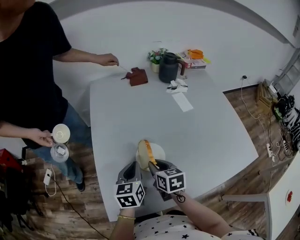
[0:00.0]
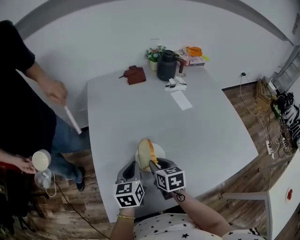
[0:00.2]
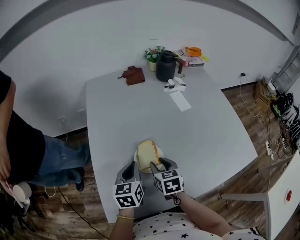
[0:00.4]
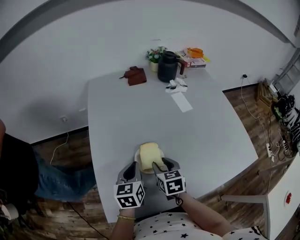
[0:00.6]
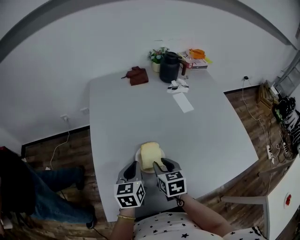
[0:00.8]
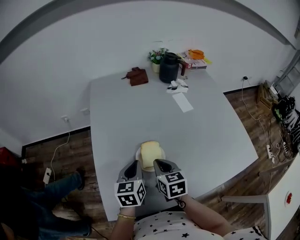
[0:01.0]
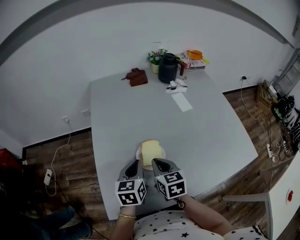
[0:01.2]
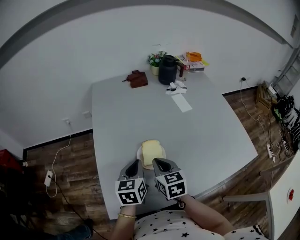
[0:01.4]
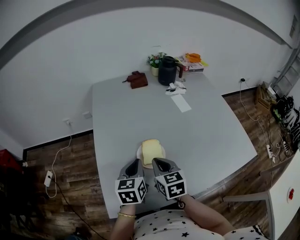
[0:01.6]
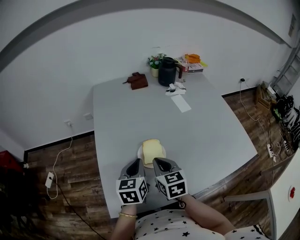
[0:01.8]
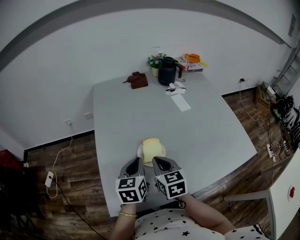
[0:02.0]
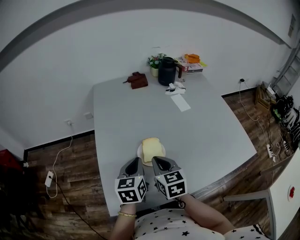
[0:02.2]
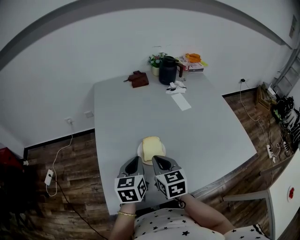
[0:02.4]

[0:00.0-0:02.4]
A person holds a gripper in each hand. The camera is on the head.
0.0 to 1.2 s: The right gripper opens, then closes once more.
1.2 to 2.4 s: The grippers move only a little.

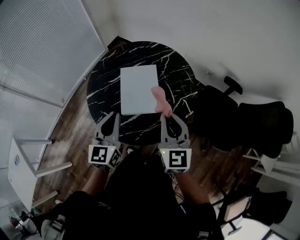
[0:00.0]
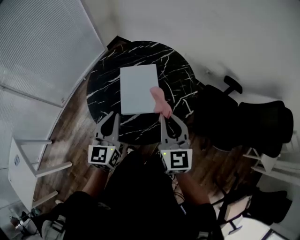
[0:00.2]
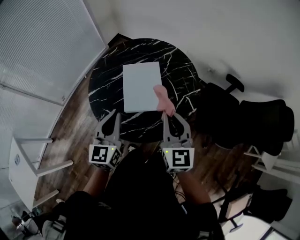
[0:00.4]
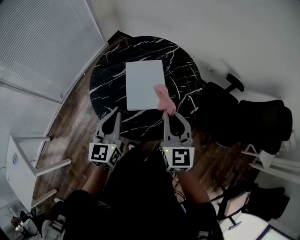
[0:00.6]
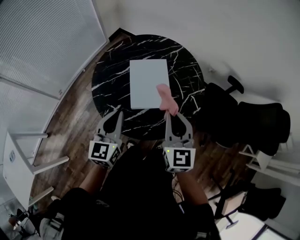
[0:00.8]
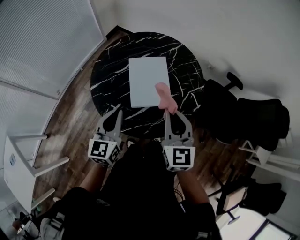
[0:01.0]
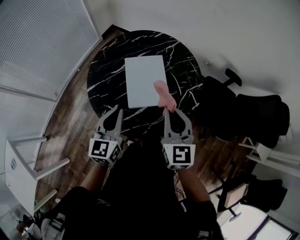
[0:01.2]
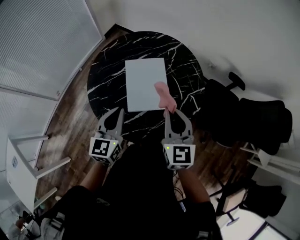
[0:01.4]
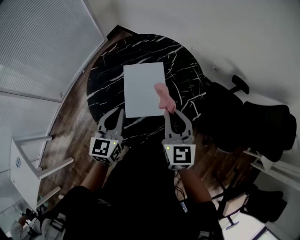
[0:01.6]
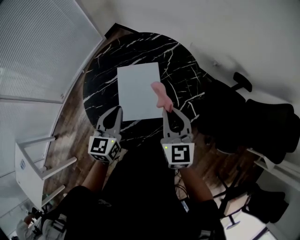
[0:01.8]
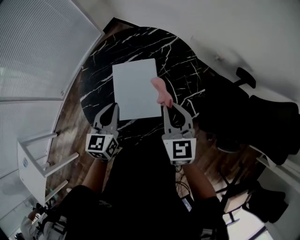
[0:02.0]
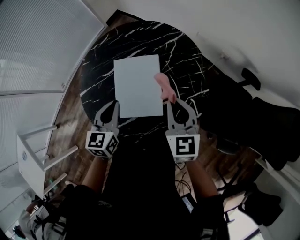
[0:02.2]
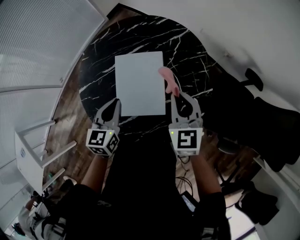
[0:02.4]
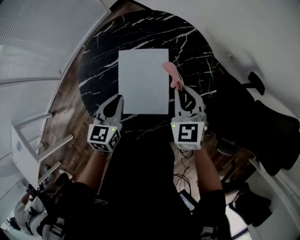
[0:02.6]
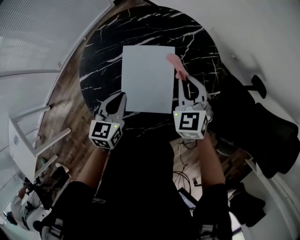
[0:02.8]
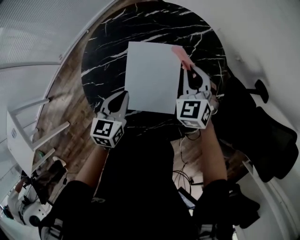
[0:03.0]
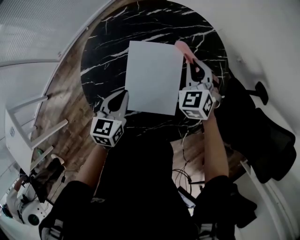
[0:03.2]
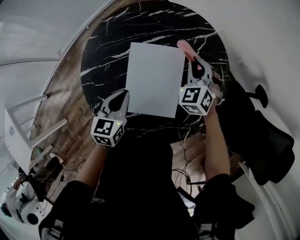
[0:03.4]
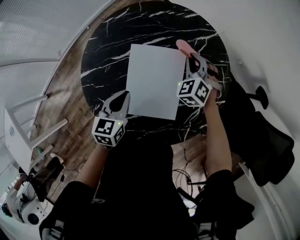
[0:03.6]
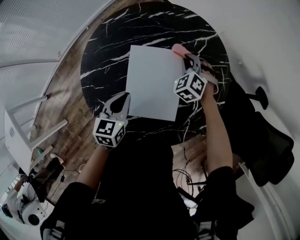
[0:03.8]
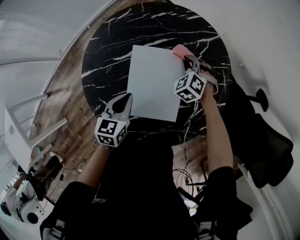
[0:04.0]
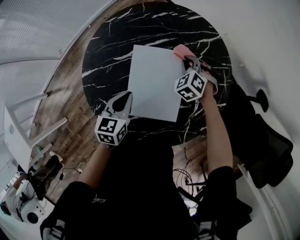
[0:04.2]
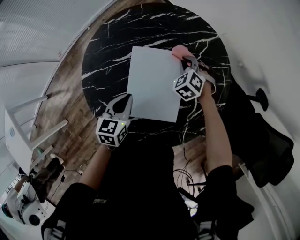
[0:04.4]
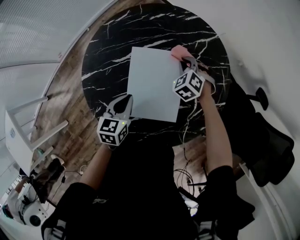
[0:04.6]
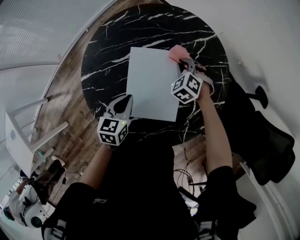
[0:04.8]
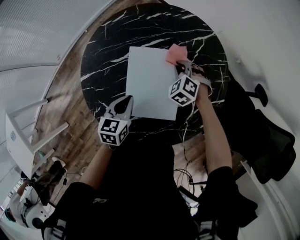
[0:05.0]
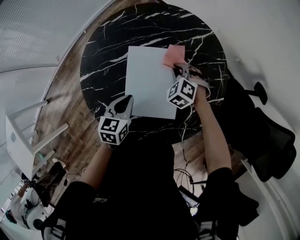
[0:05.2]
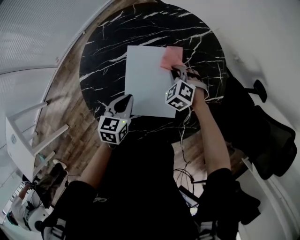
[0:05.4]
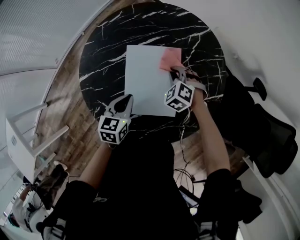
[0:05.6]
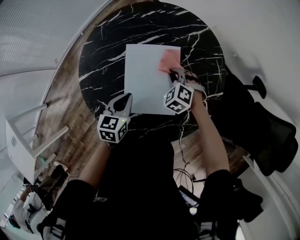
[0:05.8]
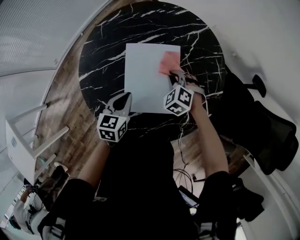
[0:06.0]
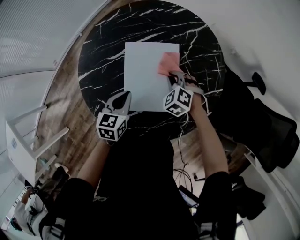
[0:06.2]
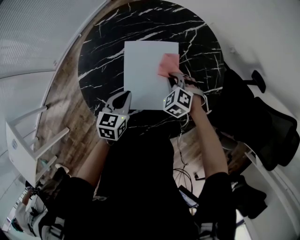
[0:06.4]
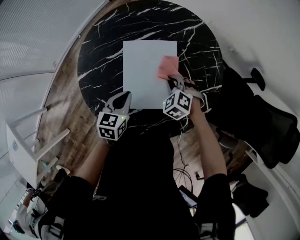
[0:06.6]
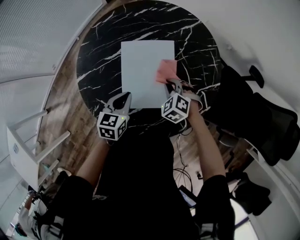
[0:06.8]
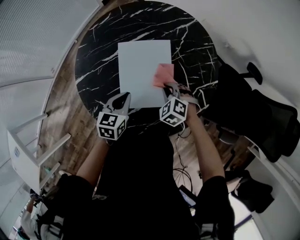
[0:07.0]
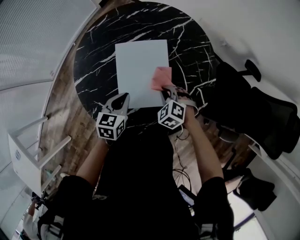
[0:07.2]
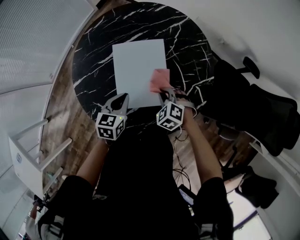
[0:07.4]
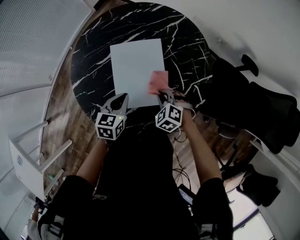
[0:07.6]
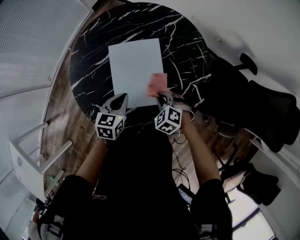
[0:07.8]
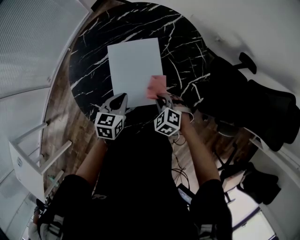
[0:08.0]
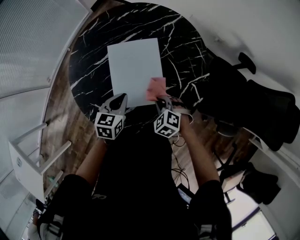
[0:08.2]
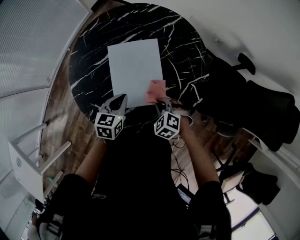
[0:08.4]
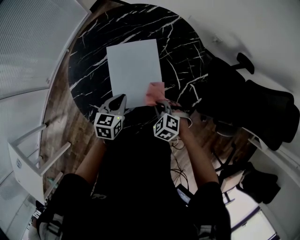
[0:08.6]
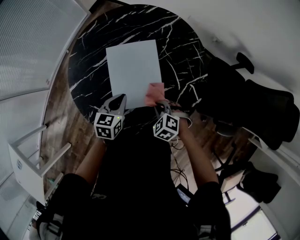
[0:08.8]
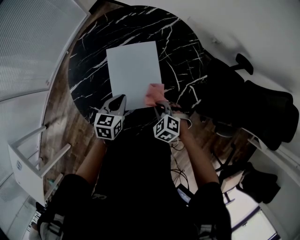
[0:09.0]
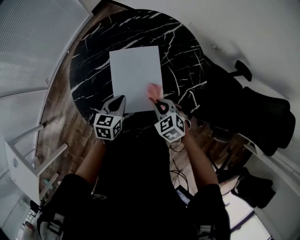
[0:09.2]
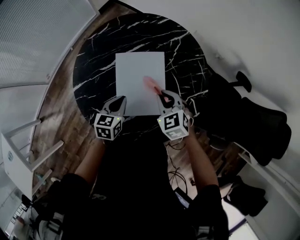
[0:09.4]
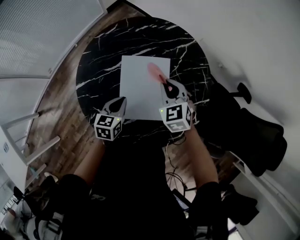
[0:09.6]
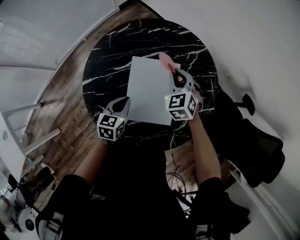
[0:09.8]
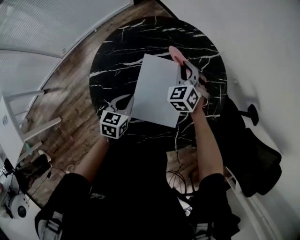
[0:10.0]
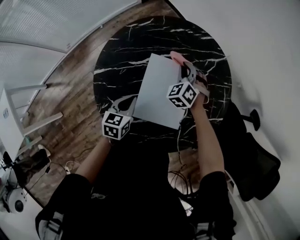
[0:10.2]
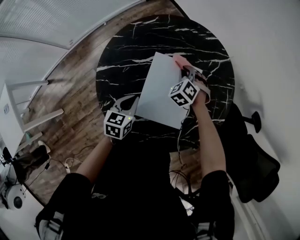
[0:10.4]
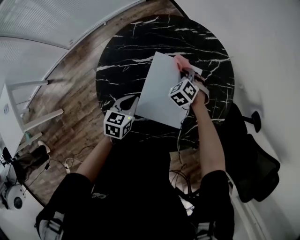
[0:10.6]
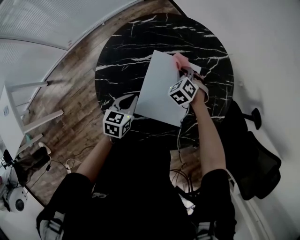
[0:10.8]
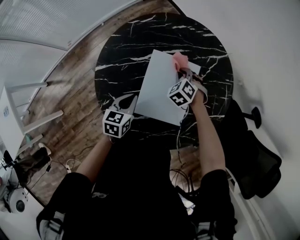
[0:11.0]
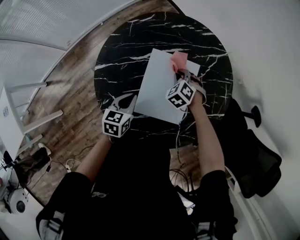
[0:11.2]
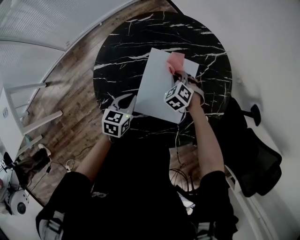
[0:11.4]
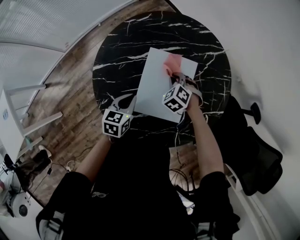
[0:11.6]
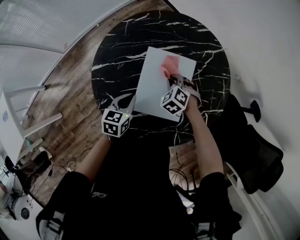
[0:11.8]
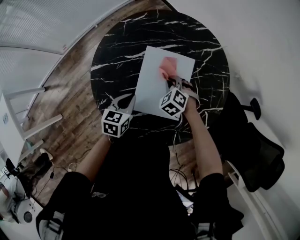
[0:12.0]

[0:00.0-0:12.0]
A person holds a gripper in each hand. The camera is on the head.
0.0 to 1.6 s: The left gripper heads forward and downward, covering some 10 cm, while the right gripper travels forward by about 10 cm.
1.6 to 3.0 s: The left gripper heads downward and forward, covering approximately 15 cm, while the right gripper goes roughly 25 cm forward and downward, and turns by roughly 40 degrees.
3.0 to 4.4 s: The left gripper moves approximately 5 cm. The right gripper travels downward and forward by about 15 cm, and turns by about 30 degrees.
4.4 to 6.0 s: The right gripper moves backward, some 10 cm.
6.0 to 7.6 s: The right gripper shifts approximately 15 cm backward.
7.6 to 9.0 s: The grippers move only a little.
9.0 to 10.4 s: The right gripper heads forward, covering some 25 cm, and swivels about 20 degrees. The left gripper travels to the left by about 10 cm.
10.4 to 12.0 s: The right gripper is displaced backward by roughly 10 cm.

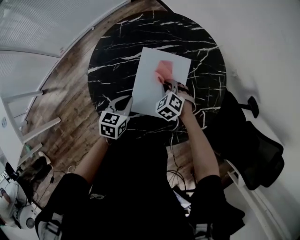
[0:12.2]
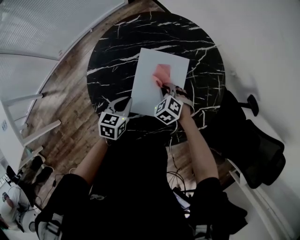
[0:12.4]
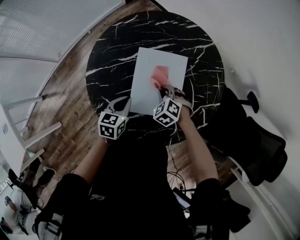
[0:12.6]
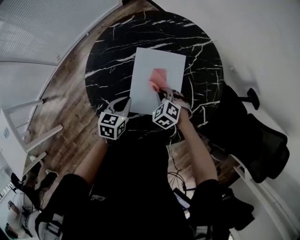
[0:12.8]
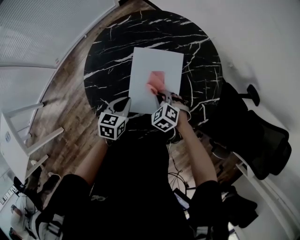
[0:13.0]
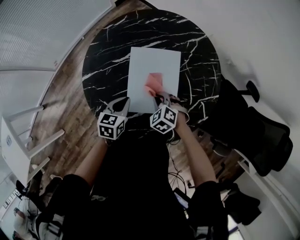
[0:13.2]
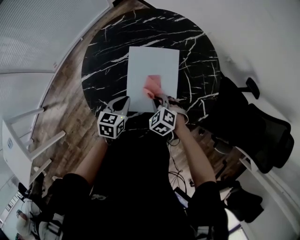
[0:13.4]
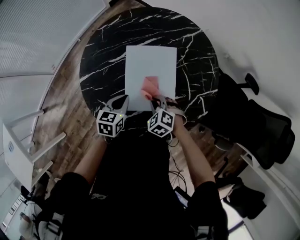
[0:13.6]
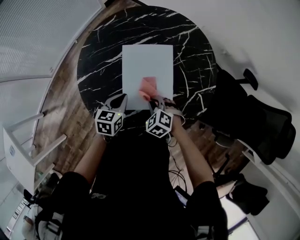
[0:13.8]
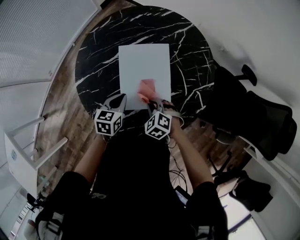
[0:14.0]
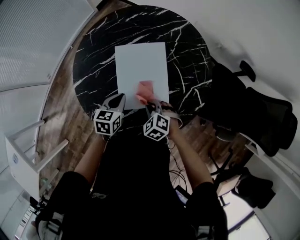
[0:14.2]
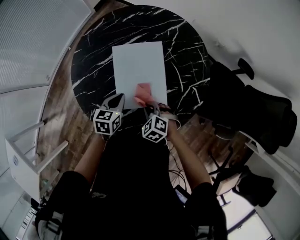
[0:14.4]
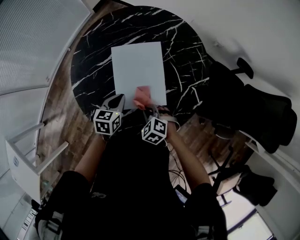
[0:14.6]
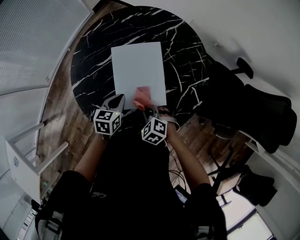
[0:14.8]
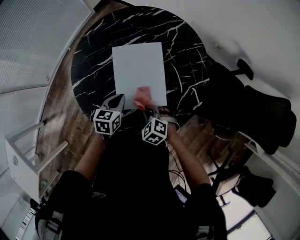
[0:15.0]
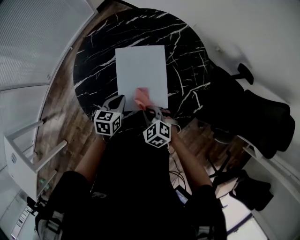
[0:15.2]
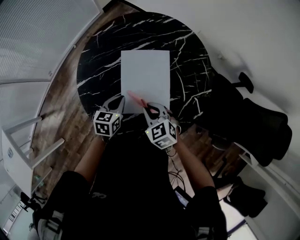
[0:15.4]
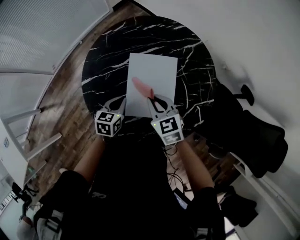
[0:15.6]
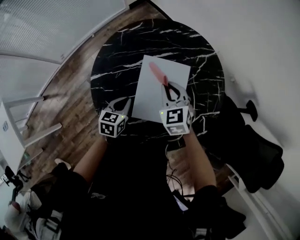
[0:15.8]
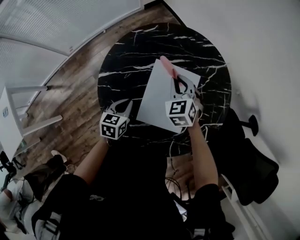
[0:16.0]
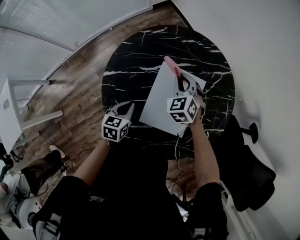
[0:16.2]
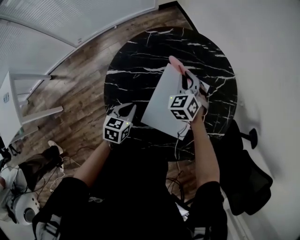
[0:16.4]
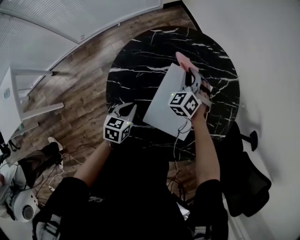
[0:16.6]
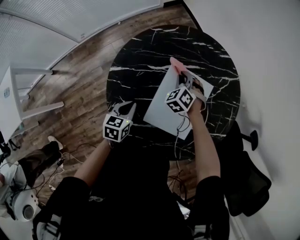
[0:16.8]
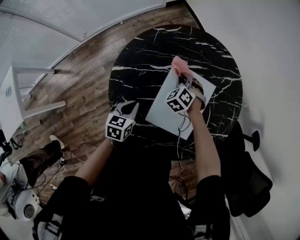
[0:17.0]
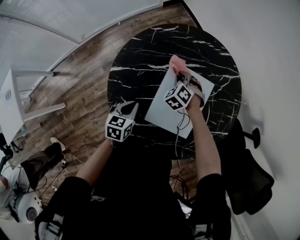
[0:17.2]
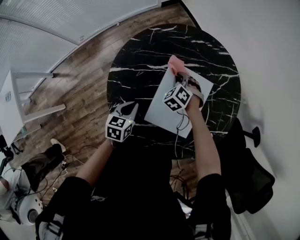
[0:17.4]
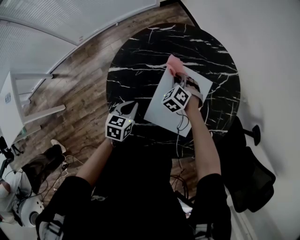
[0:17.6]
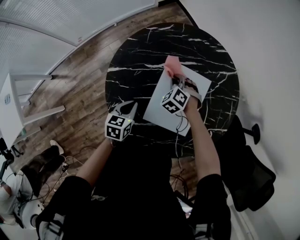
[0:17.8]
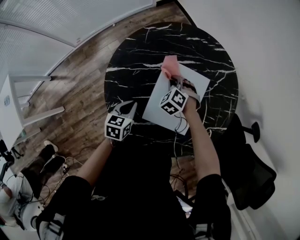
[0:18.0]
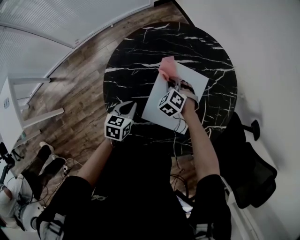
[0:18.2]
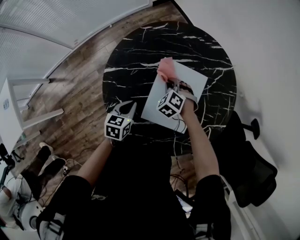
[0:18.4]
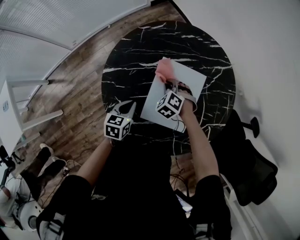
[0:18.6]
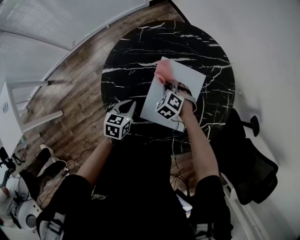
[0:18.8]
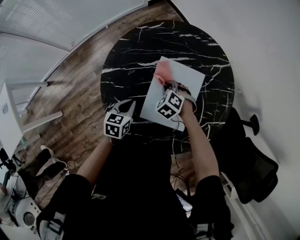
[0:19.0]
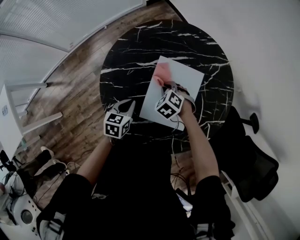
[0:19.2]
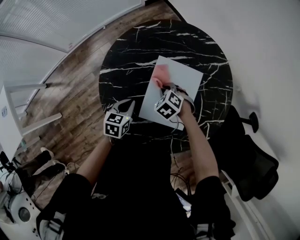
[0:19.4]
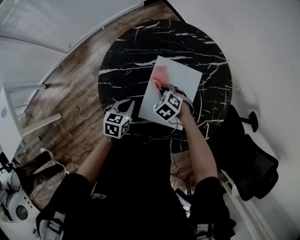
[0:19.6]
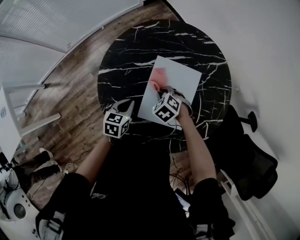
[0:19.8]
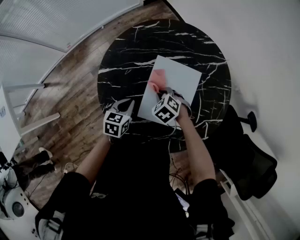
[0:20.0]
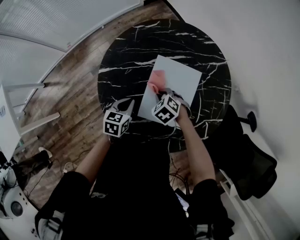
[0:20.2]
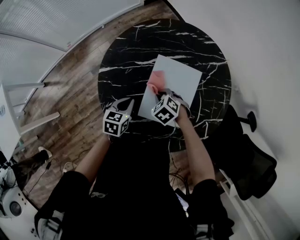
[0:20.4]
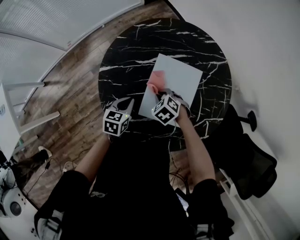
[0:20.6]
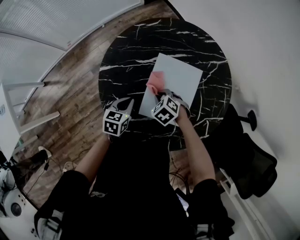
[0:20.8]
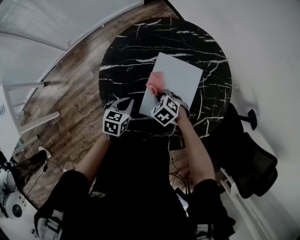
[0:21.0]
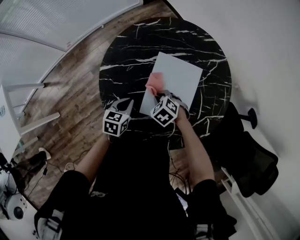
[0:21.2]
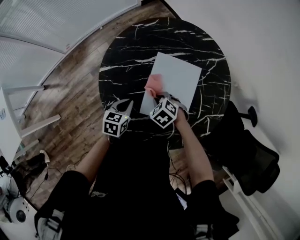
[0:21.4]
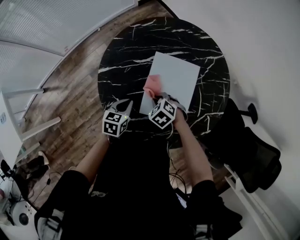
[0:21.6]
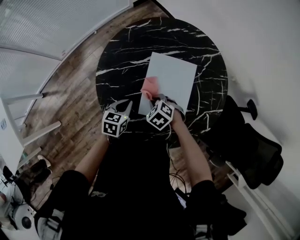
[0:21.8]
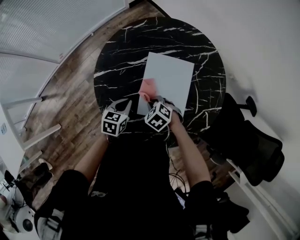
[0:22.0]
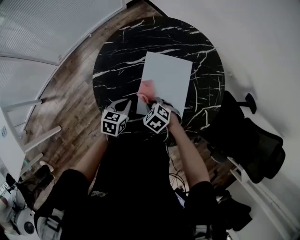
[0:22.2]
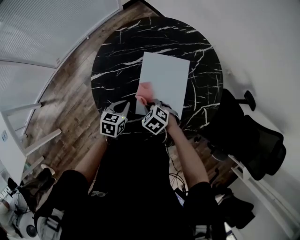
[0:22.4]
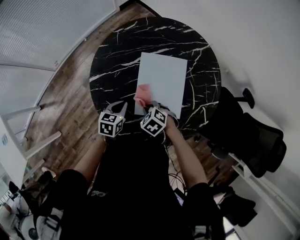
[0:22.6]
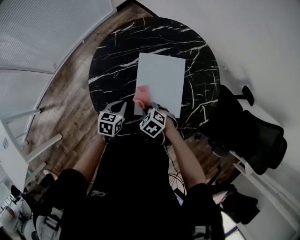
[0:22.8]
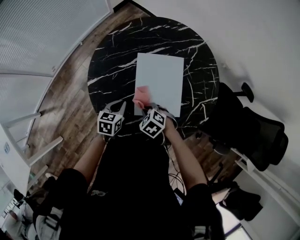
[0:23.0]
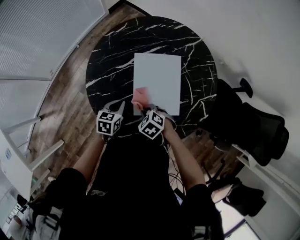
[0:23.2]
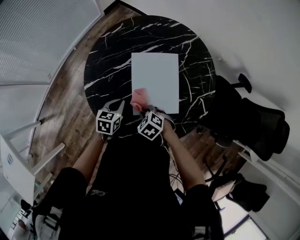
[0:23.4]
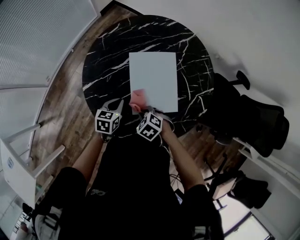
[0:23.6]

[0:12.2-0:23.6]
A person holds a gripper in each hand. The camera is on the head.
12.2 to 13.6 s: The right gripper moves backward, approximately 10 cm.
13.6 to 15.0 s: The right gripper shifts some 5 cm backward.
15.0 to 16.4 s: The left gripper goes about 10 cm to the left, and changes its angle by about 20 degrees; the right gripper moves forward, roughly 30 cm, and swivels some 30 degrees.
16.4 to 17.8 s: The right gripper moves downward, roughly 10 cm, and swivels some 20 degrees.
17.8 to 19.4 s: The right gripper heads backward, covering approximately 10 cm.
19.4 to 20.8 s: The right gripper travels backward by roughly 5 cm.
20.8 to 22.2 s: The right gripper heads backward, covering roughly 5 cm.
22.2 to 23.6 s: The grippers move only a little.
